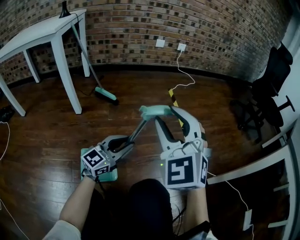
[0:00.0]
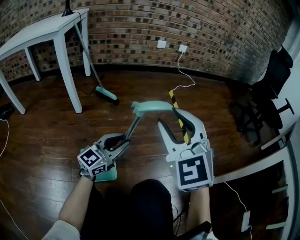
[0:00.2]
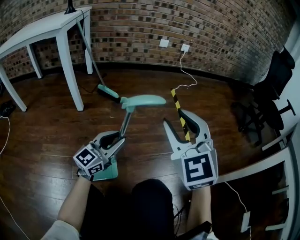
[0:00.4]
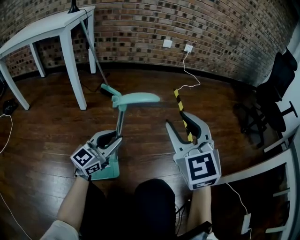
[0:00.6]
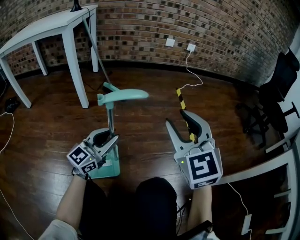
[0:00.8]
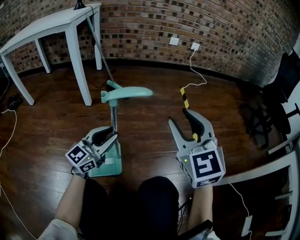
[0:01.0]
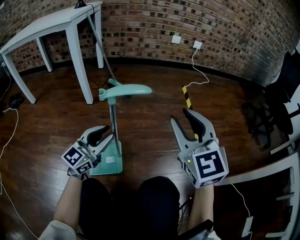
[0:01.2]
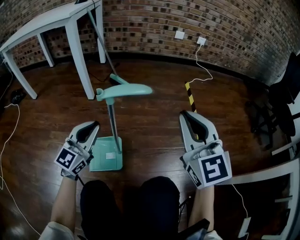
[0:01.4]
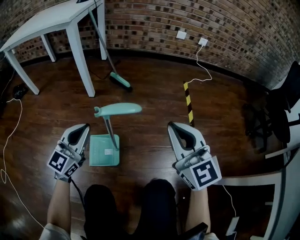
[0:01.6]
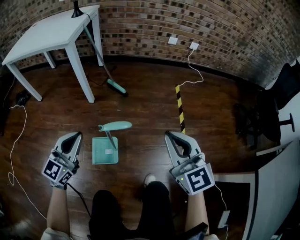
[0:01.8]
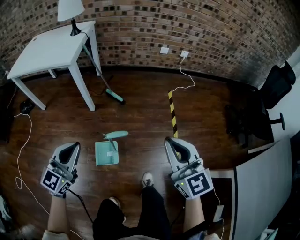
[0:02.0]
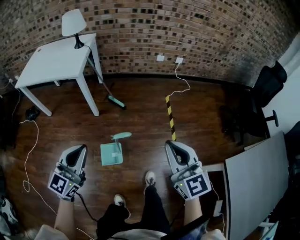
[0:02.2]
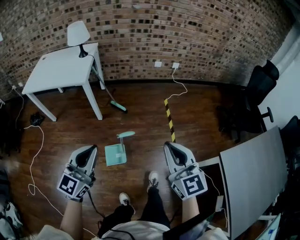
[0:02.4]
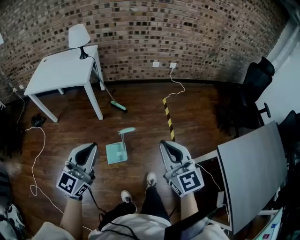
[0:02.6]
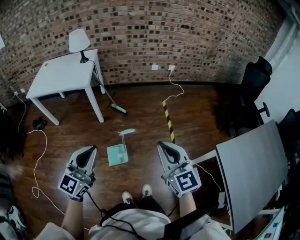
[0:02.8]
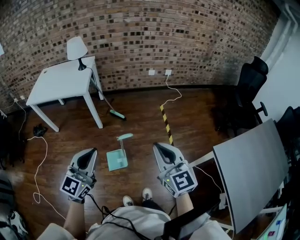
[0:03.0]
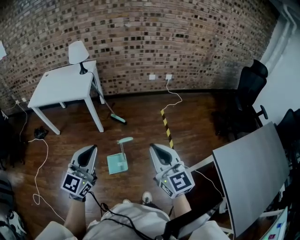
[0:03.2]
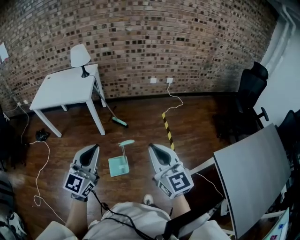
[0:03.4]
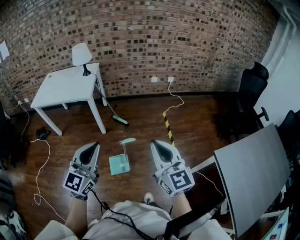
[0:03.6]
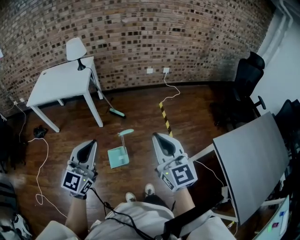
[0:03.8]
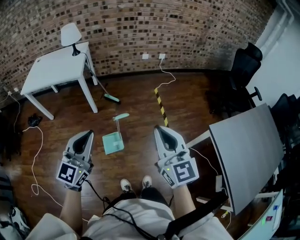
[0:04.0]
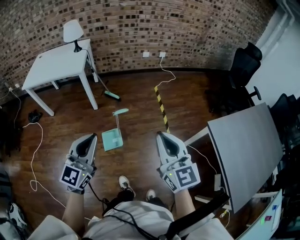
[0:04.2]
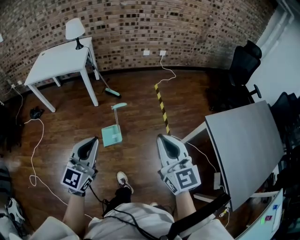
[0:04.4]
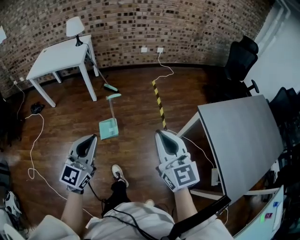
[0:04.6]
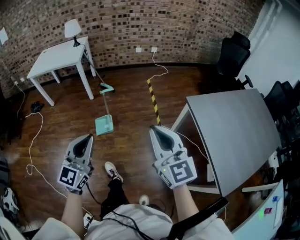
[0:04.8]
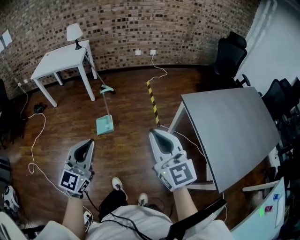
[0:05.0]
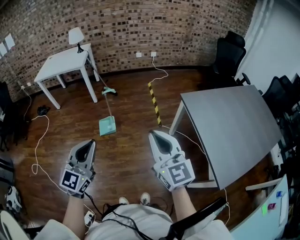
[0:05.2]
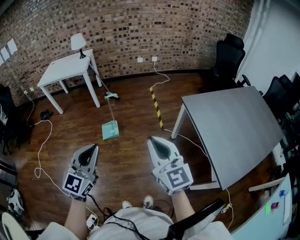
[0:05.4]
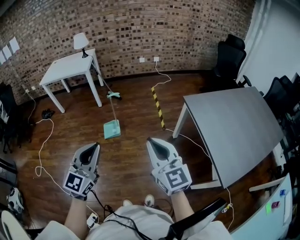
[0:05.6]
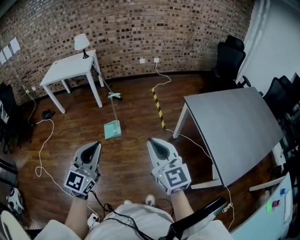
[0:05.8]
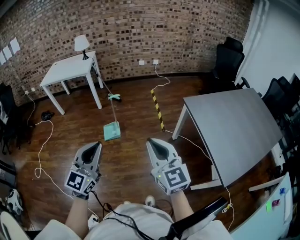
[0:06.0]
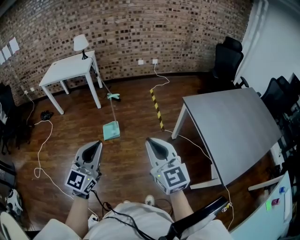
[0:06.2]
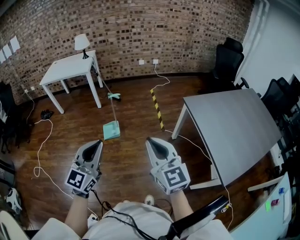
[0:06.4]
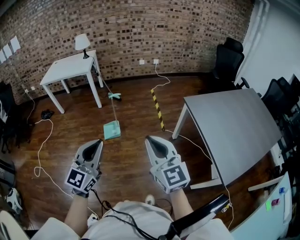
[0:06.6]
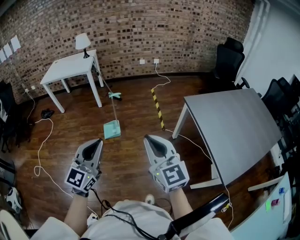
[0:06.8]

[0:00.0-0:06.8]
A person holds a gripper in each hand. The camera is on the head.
0:00.0 to 0:01.4: The right gripper turns by approximately 30 degrees, and closes. Meanwhile the left gripper goes about 15 cm to the left, turns by roughly 30 degrees, and closes.
0:01.4 to 0:02.8: The right gripper travels upward and backward by about 50 cm. Meanwhile the left gripper is displaced upward by roughly 60 cm.
0:02.8 to 0:04.0: The right gripper is displaced backward and upward by roughly 10 cm.
0:04.0 to 0:05.4: Both grippers are carried backward and to the right, approximately 40 cm.
0:05.4 to 0:06.8: The right gripper goes about 5 cm to the left.

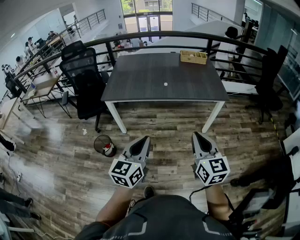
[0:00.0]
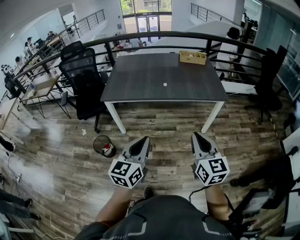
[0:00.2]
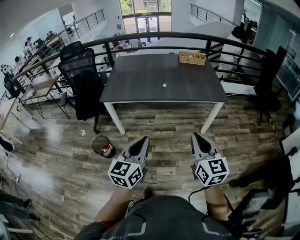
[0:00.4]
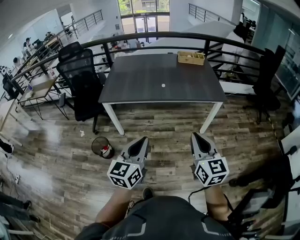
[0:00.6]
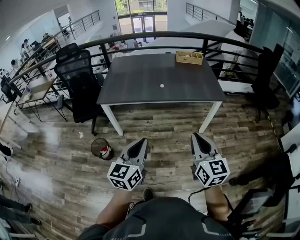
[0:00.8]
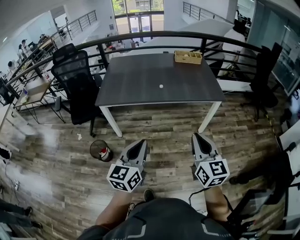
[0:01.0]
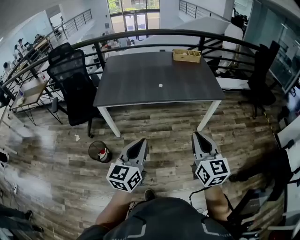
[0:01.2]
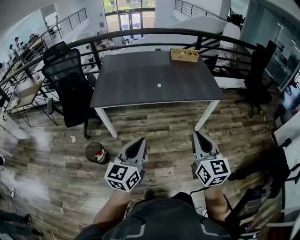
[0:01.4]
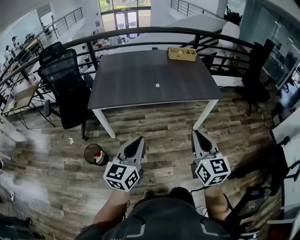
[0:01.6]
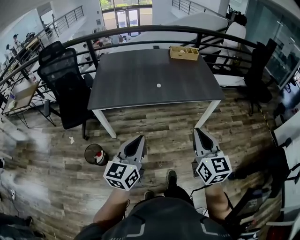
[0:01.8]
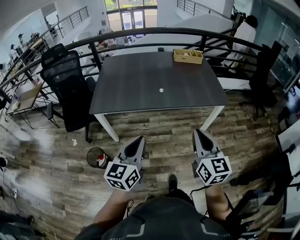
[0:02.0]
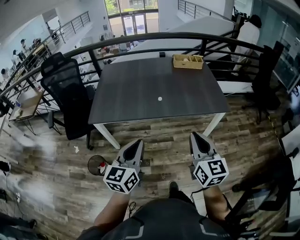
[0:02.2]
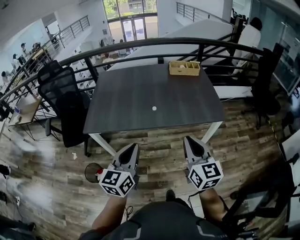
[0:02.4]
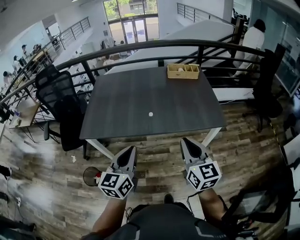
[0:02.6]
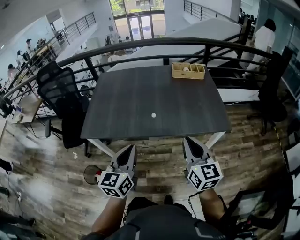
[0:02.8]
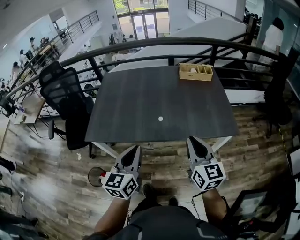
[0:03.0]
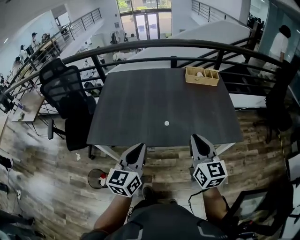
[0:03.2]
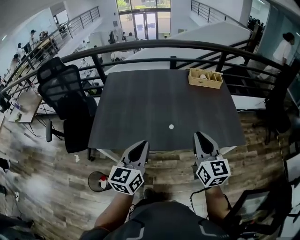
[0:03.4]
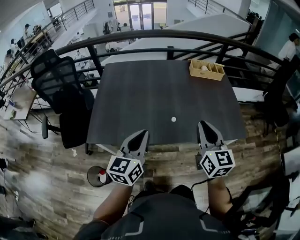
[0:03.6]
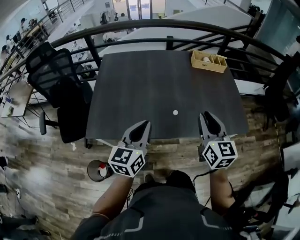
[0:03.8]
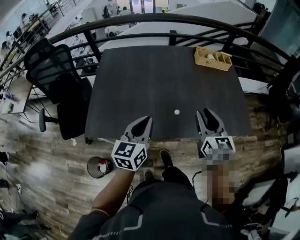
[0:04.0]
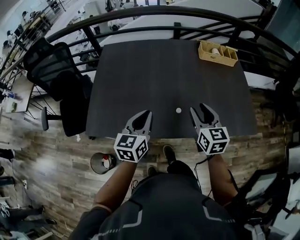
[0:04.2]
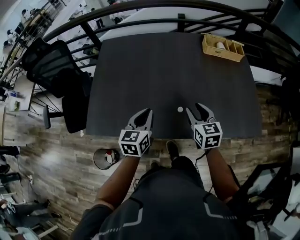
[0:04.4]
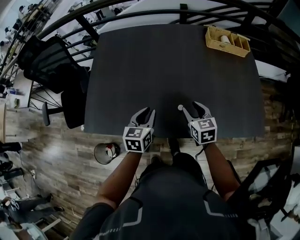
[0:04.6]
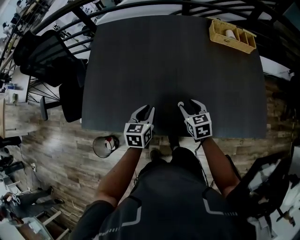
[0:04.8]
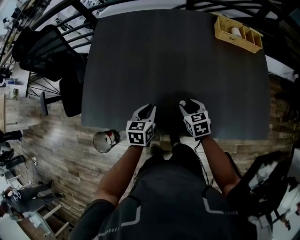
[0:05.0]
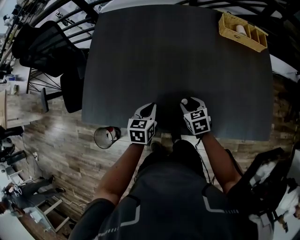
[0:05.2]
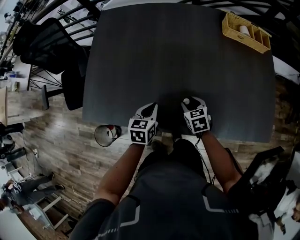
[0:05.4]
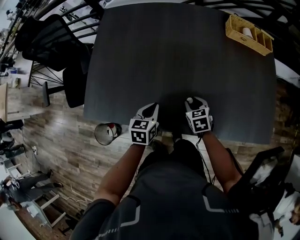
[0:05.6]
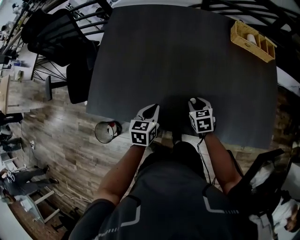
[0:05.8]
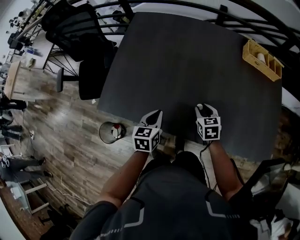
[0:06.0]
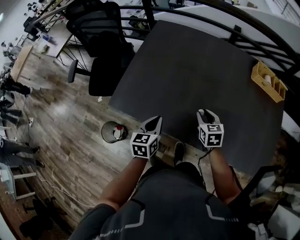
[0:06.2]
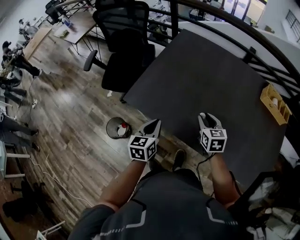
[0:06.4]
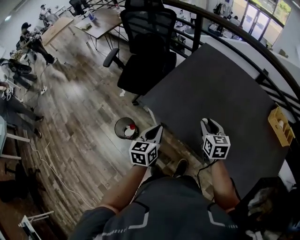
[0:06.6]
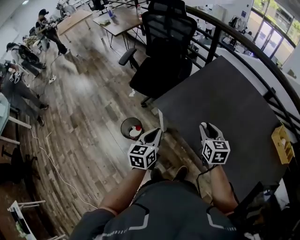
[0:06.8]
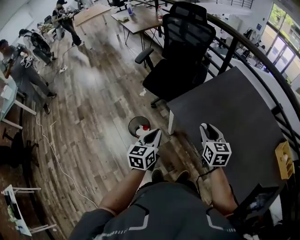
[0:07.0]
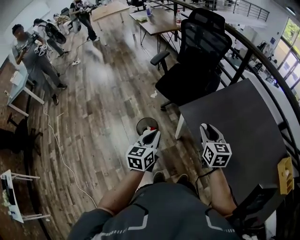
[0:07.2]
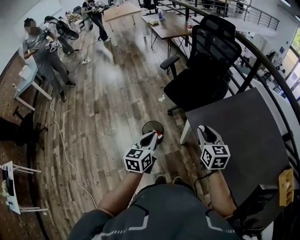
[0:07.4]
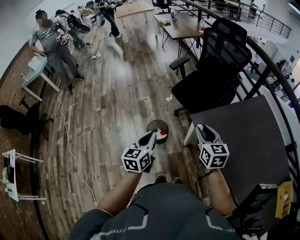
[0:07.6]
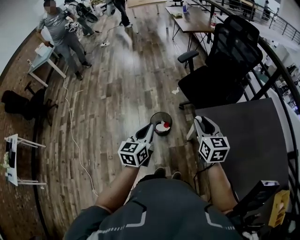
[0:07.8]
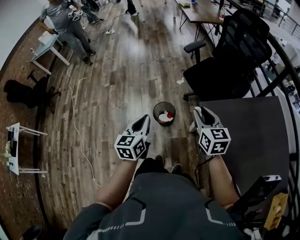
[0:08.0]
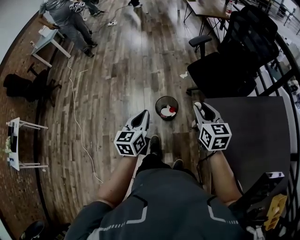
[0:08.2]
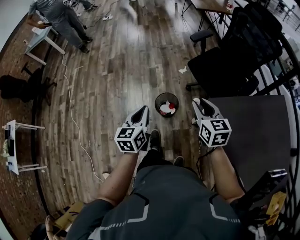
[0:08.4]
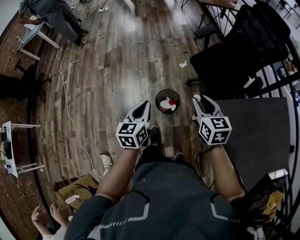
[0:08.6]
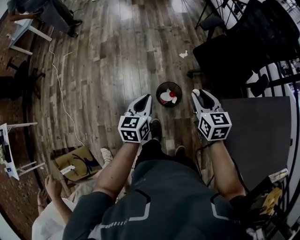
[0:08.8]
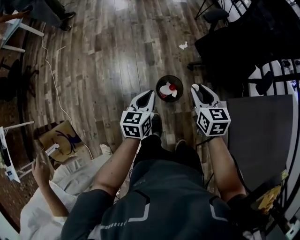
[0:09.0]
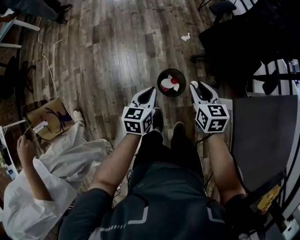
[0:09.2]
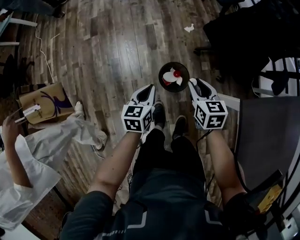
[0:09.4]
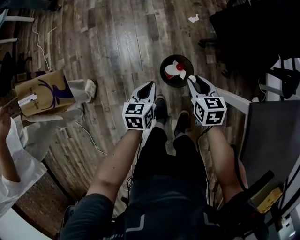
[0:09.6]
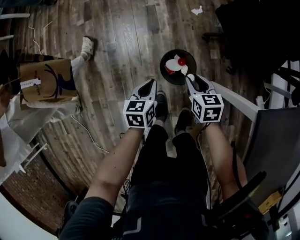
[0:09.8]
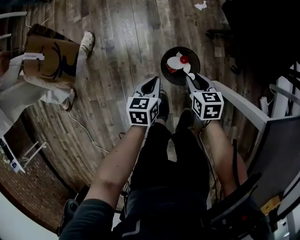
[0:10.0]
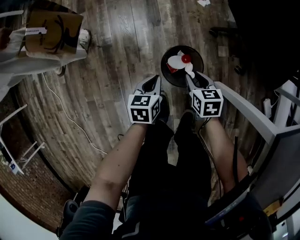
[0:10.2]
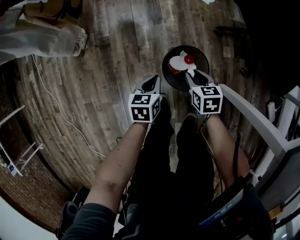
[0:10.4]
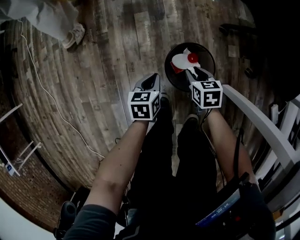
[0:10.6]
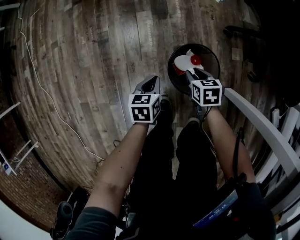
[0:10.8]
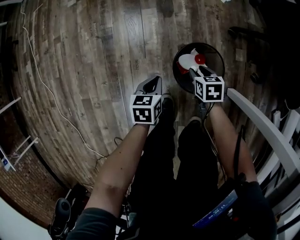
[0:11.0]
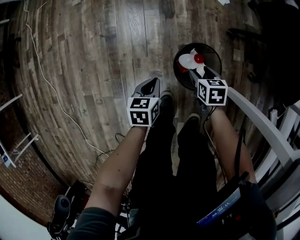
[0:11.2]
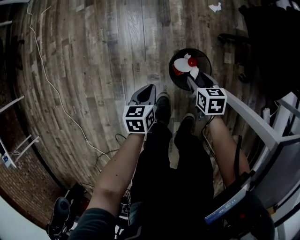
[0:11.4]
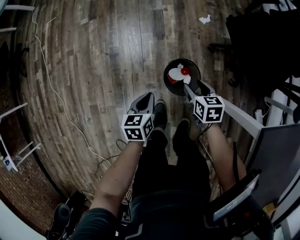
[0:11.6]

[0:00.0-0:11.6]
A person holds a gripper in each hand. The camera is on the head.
0:00.0 to 0:01.4: The right gripper moves roughly 5 cm. The left gripper moves to the left and forward, roughly 10 cm.
0:01.4 to 0:02.8: Both grippers travel together forward, some 30 cm.
0:02.8 to 0:04.4: The two grippers go approximately 35 cm forward and downward. The right gripper turns by approximately 20 degrees, and opens its fingers.
0:04.4 to 0:05.8: The grippers both shift downward by approximately 15 cm. The right gripper changes its angle by about 30 degrees.
0:05.8 to 0:07.2: The two grippers travel together, about 40 cm. The left gripper turns by some 60 degrees; the right gripper swivels some 50 degrees.
0:07.2 to 0:08.8: The right gripper ends up roughly 35 cm from where it was, and swivels roughly 30 degrees. The left gripper moves some 30 cm, and swivels roughly 20 degrees.
0:08.8 to 0:10.2: The two grippers go some 40 cm downward. The right gripper rotates approximately 30 degrees. The left gripper swivels roughly 30 degrees.
0:10.2 to 0:11.6: The right gripper goes downward and returns, some 20 cm each way, and opens up. Meanwhile the left gripper moves upward and to the left, approximately 10 cm.

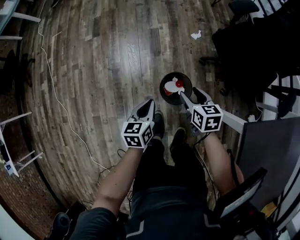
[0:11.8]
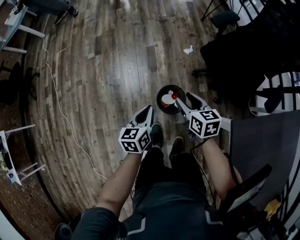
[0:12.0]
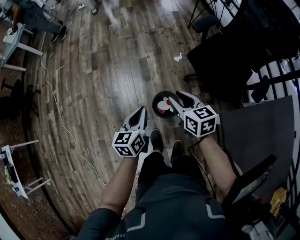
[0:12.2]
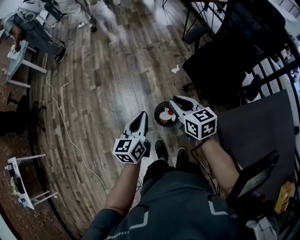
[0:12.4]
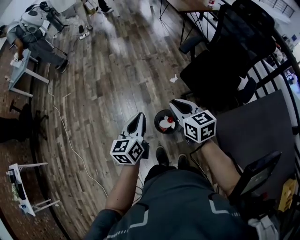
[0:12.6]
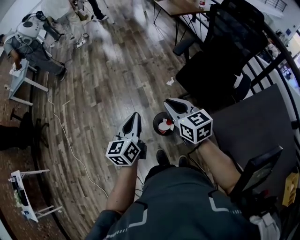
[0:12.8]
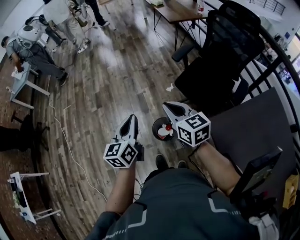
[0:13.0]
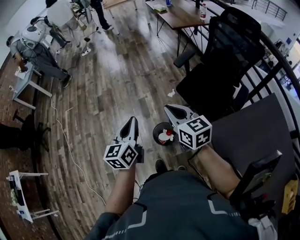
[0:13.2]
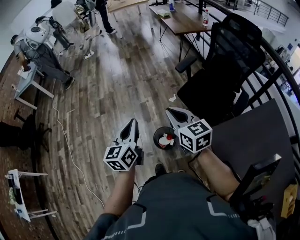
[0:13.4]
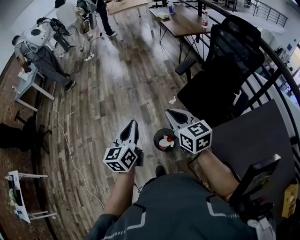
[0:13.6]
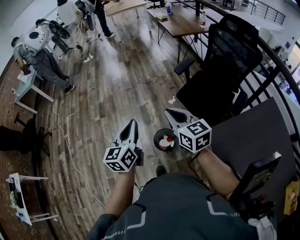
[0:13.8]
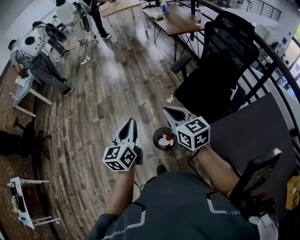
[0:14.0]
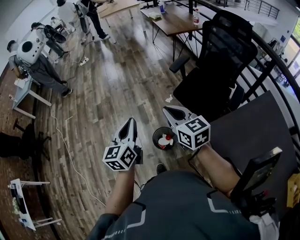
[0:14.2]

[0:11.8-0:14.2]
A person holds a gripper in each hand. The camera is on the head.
0:11.8 to 0:13.0: The two grippers go approximately 40 cm upward. The right gripper rotates approximately 30 degrees, and closes. Meanwhile the left gripper swivels some 30 degrees.
0:13.0 to 0:14.2: The grippers move only a little.

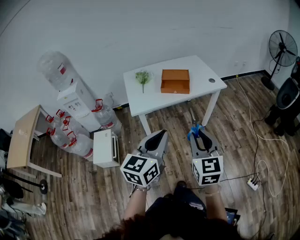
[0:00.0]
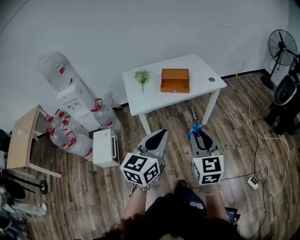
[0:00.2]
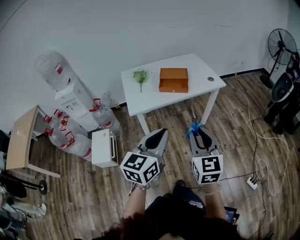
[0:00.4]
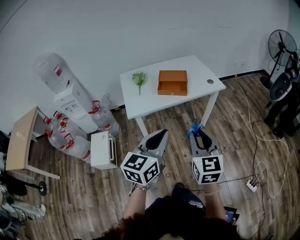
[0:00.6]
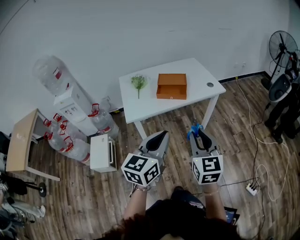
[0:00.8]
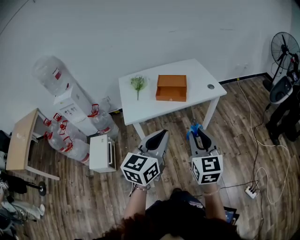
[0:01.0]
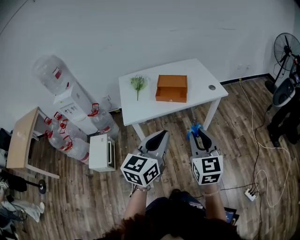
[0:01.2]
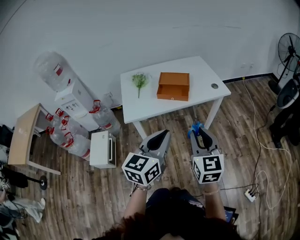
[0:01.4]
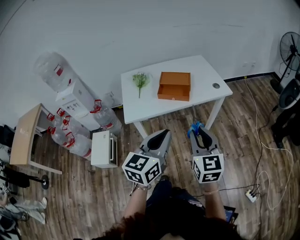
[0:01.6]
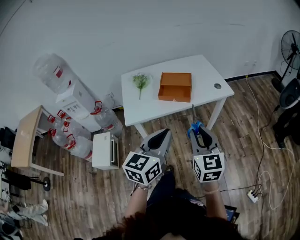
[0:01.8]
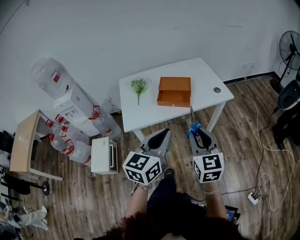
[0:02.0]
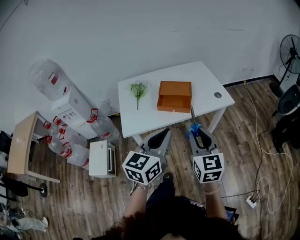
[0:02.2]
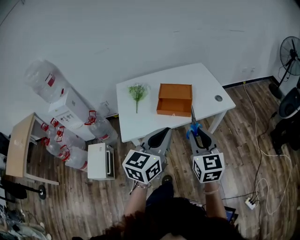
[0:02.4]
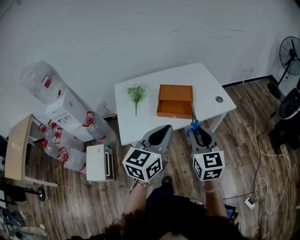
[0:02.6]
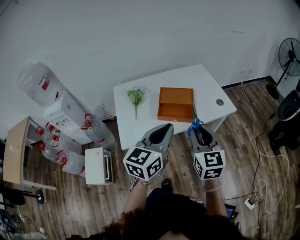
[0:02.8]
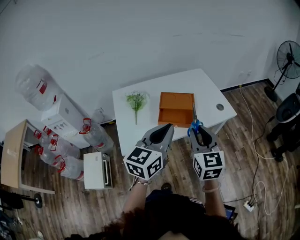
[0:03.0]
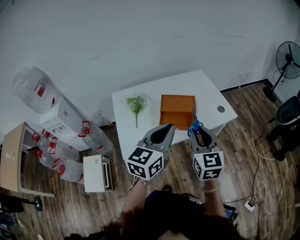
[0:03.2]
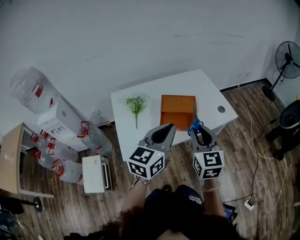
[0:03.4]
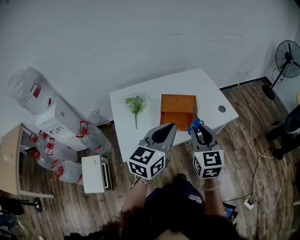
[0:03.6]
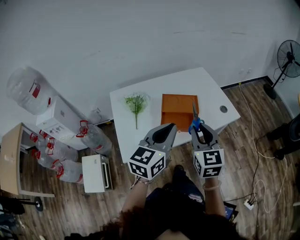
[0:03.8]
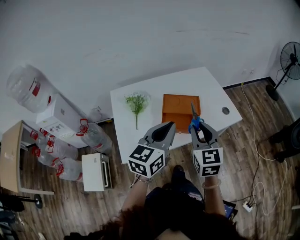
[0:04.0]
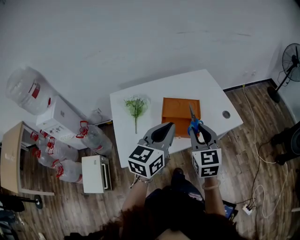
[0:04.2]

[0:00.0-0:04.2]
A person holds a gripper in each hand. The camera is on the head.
0:00.0 to 0:01.4: The left gripper moves forward and to the right, roughly 15 cm. Meanwhile the right gripper moves forward, about 15 cm.
0:01.4 to 0:02.8: The grippers both shift forward by approximately 20 cm.
0:02.8 to 0:04.2: Both grippers move forward and to the left, roughly 15 cm.
